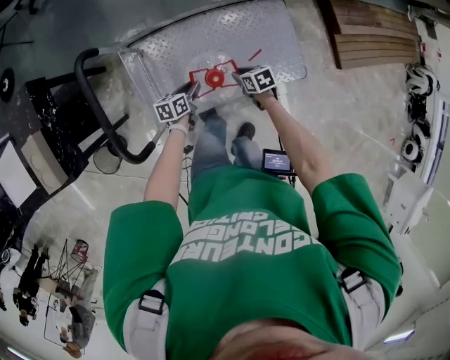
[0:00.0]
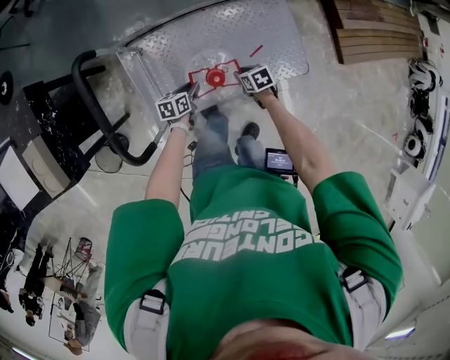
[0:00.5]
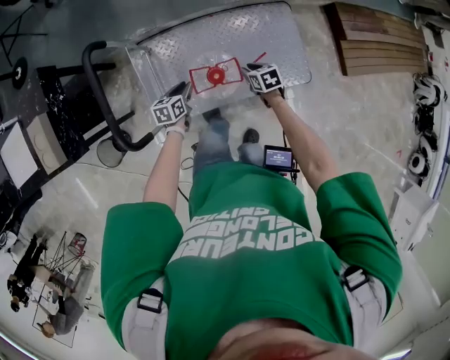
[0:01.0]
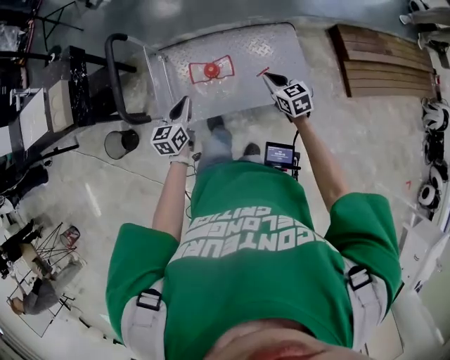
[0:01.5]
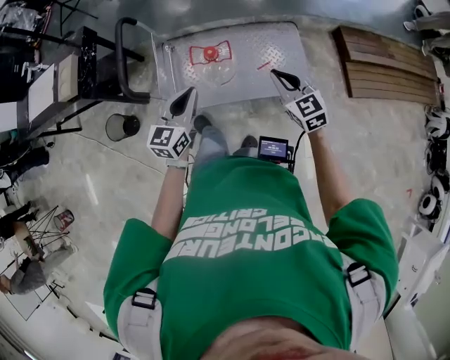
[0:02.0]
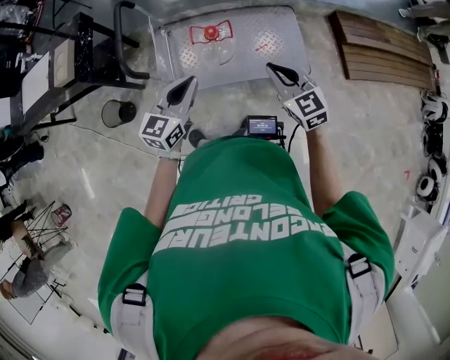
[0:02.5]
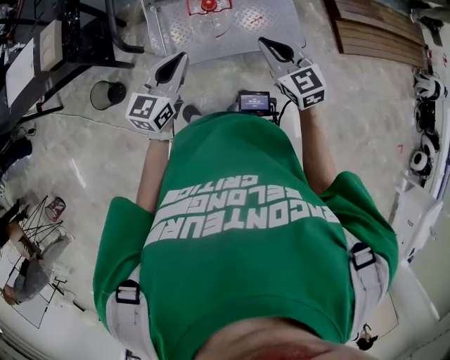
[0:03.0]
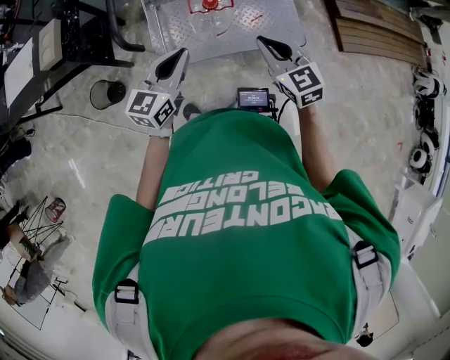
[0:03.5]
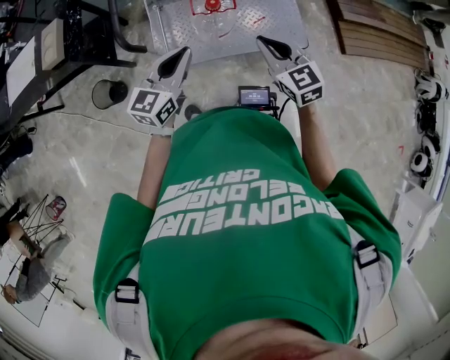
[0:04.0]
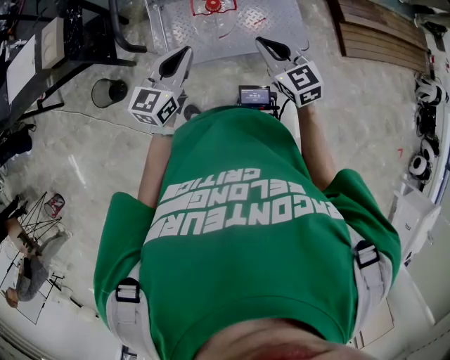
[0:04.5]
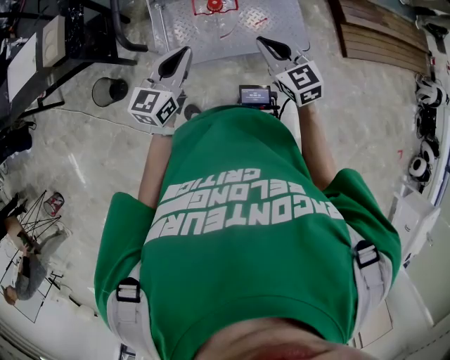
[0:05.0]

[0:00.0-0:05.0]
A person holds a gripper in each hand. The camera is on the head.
0:00.0 to 0:02.5: The grippers both shift upward and backward by approximately 50 cm. The left gripper turns by some 50 degrees, and closes; the right gripper angles its fingers upward, by approximately 40 degrees.
0:02.5 to 0:05.0: The right gripper shifts roughly 5 cm to the left.

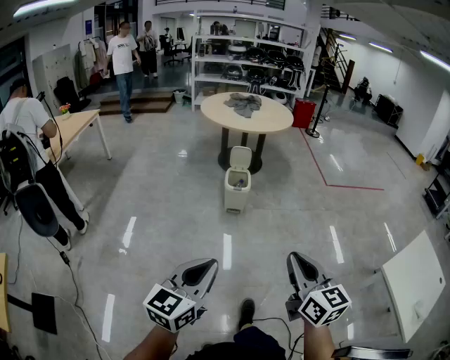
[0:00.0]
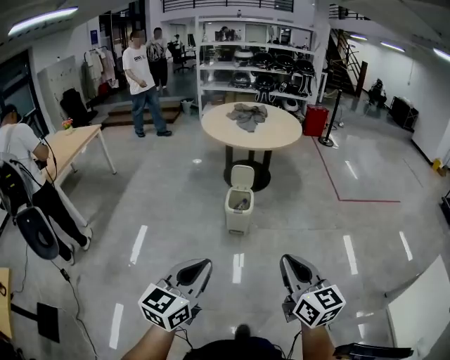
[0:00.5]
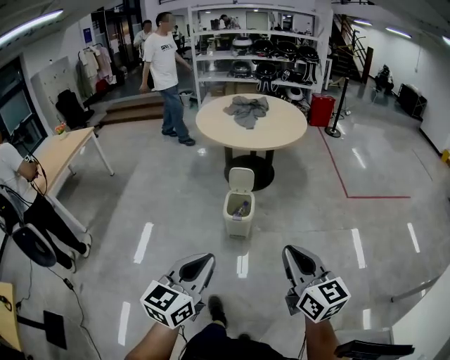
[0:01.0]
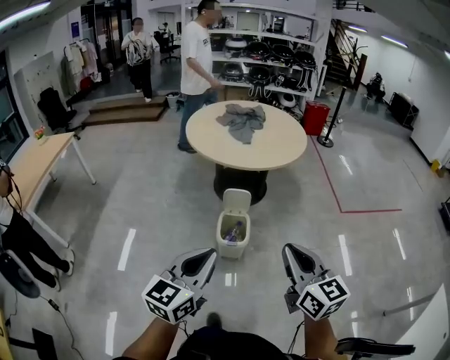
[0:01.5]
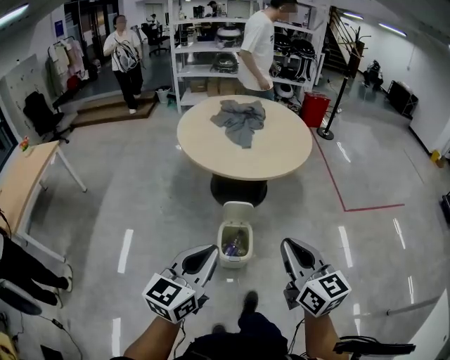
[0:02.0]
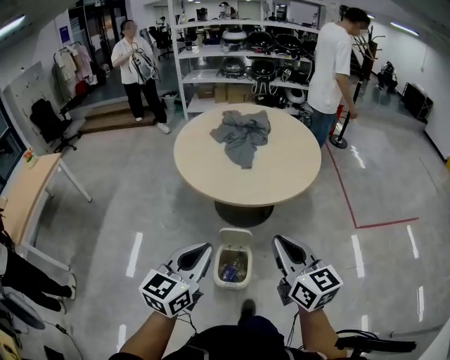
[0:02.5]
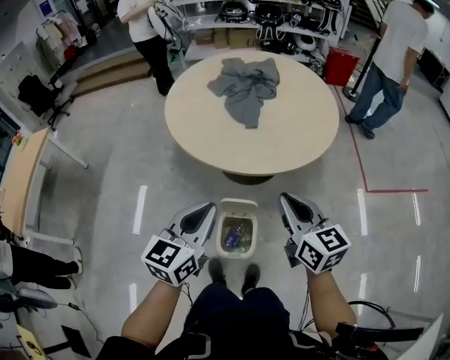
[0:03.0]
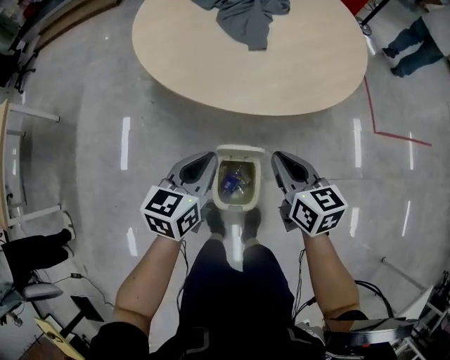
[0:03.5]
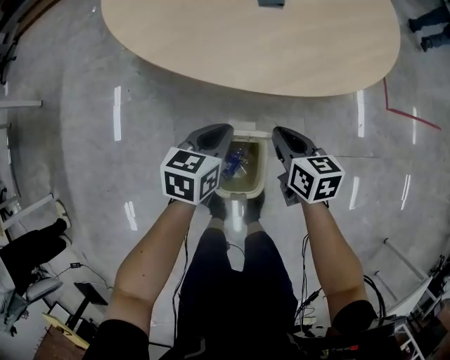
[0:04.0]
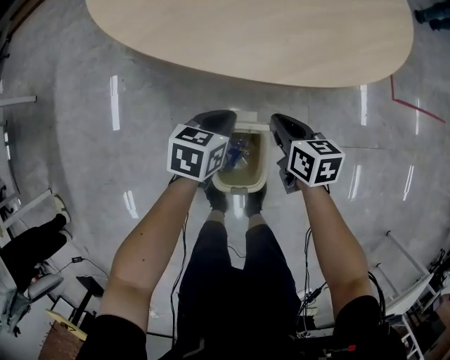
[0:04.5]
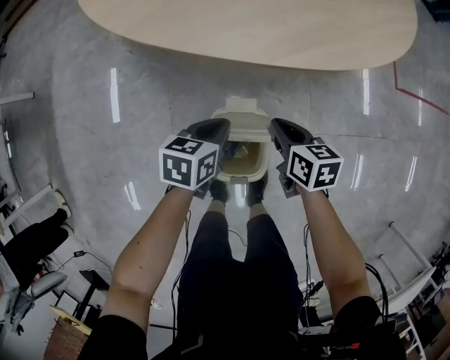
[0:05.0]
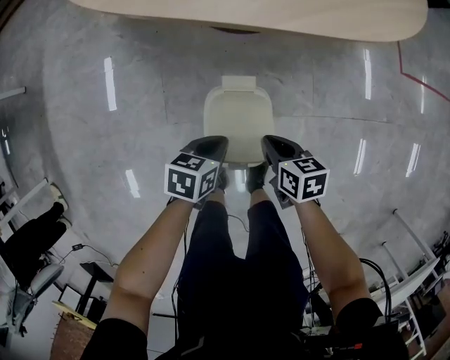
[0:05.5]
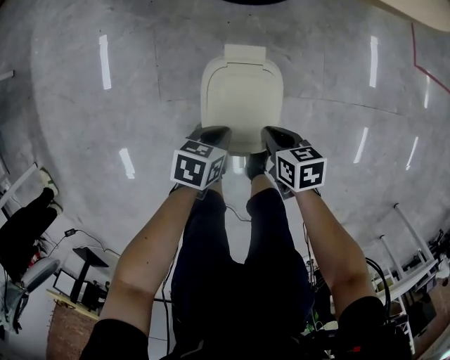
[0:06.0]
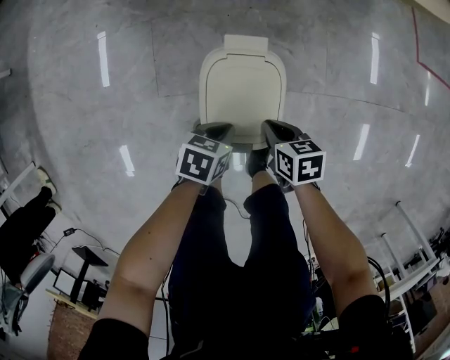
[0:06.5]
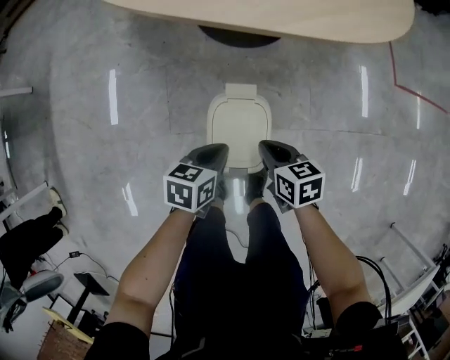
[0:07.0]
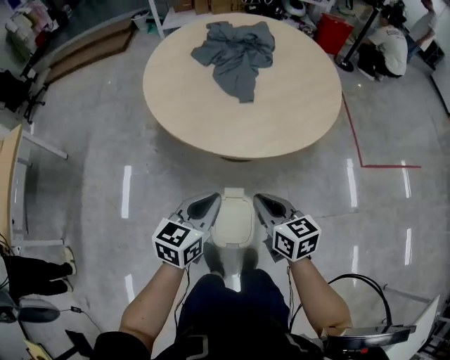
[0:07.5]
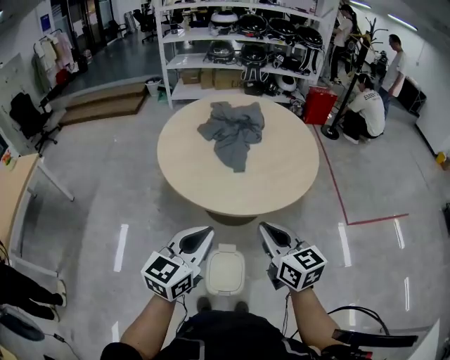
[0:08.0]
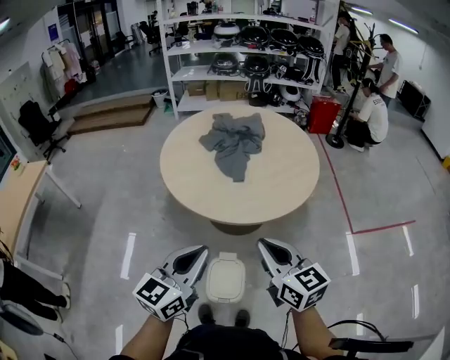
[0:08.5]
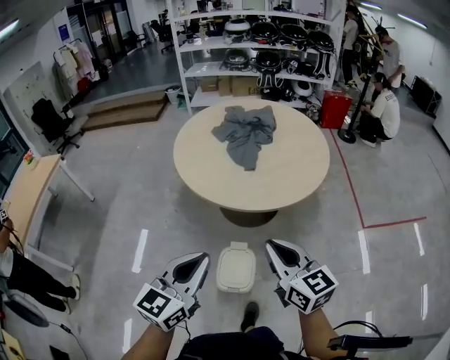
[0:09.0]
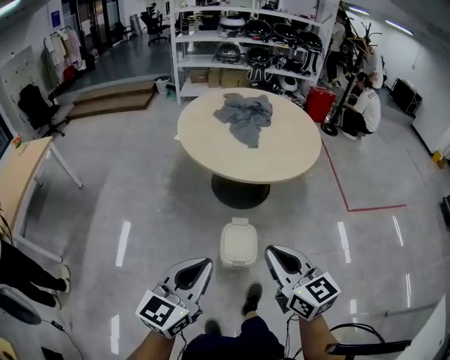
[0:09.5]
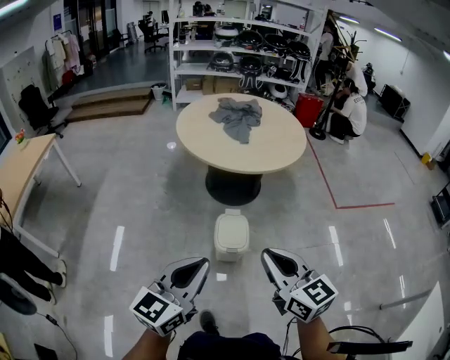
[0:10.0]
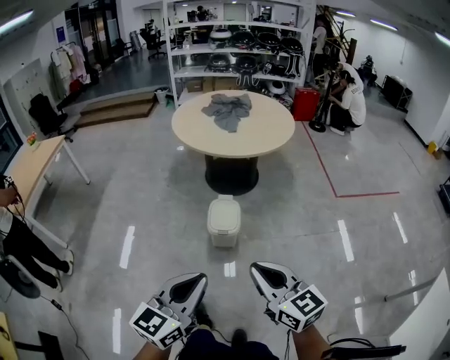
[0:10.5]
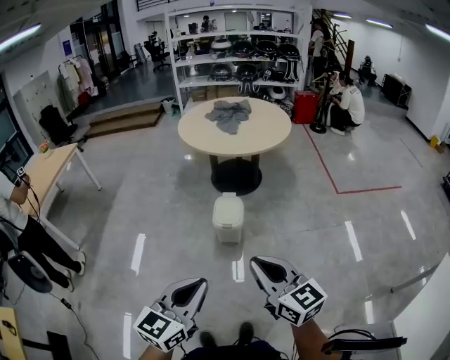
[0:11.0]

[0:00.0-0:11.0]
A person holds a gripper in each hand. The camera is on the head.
0:00.0 to 0:02.0: The two grippers travel together, forward, about 70 cm.
0:02.0 to 0:03.5: The grippers both shift forward and downward by approximately 40 cm. The right gripper swivels some 30 degrees. The left gripper turns by about 20 degrees.
0:03.5 to 0:05.5: The grippers both shift downward by about 30 cm. The left gripper swivels some 40 degrees, while the right gripper swivels about 30 degrees.
0:05.5 to 0:07.5: Both grippers travel together upward, about 35 cm. The left gripper swivels some 40 degrees; the right gripper changes its angle by about 30 degrees.
0:07.5 to 0:09.0: The grippers both shift upward and backward by roughly 25 cm. The right gripper changes its angle by approximately 20 degrees. Meanwhile the left gripper swivels about 20 degrees.
0:09.0 to 0:11.0: The two grippers travel together, backward, approximately 50 cm.

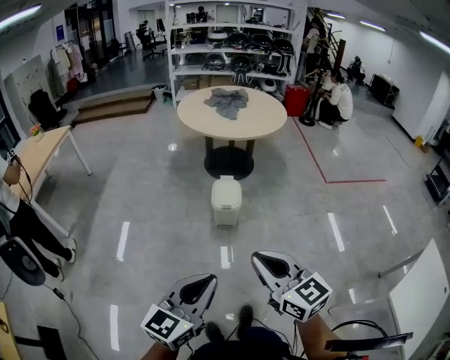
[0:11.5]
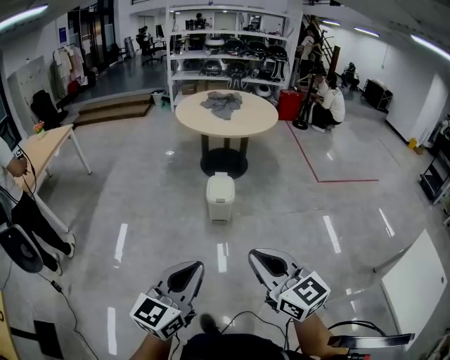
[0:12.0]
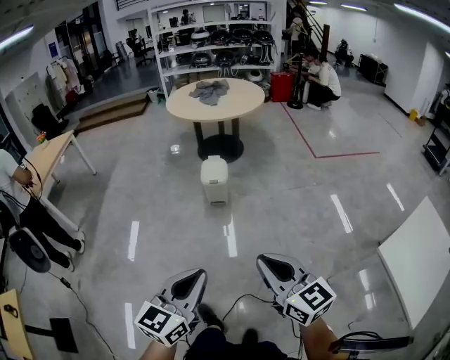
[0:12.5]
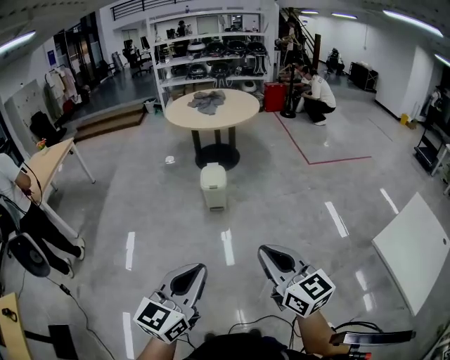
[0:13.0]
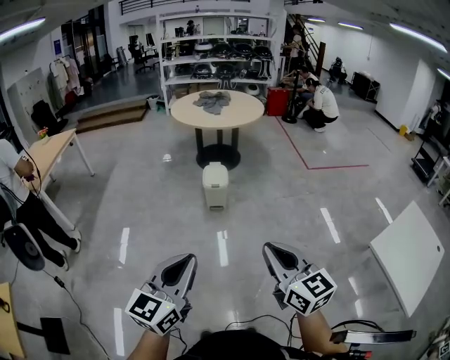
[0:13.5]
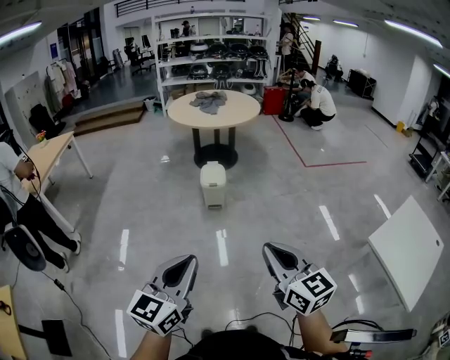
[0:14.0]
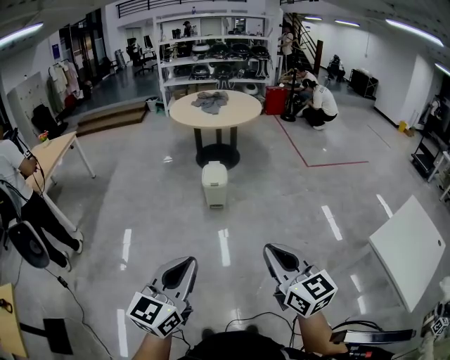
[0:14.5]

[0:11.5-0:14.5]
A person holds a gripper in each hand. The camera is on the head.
0:11.5 to 0:13.0: The right gripper is displaced backward and to the right by some 30 cm; the left gripper is displaced backward by about 25 cm.
0:13.0 to 0:14.5: The left gripper heads to the left, covering some 5 cm.

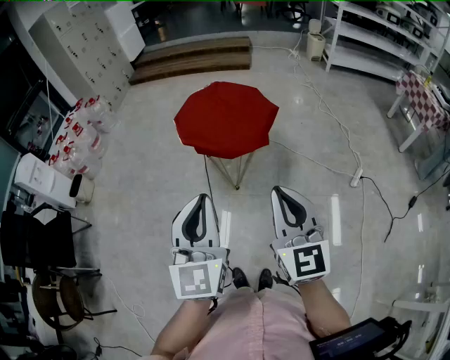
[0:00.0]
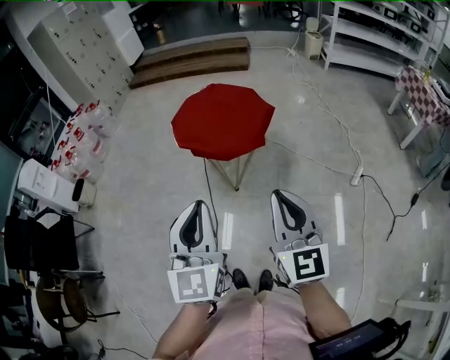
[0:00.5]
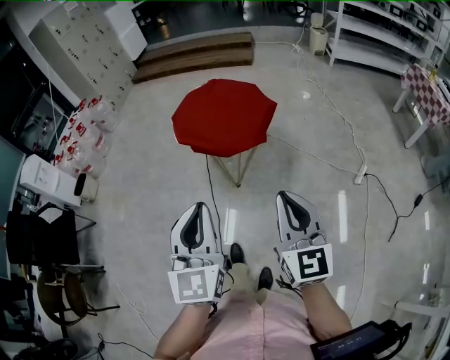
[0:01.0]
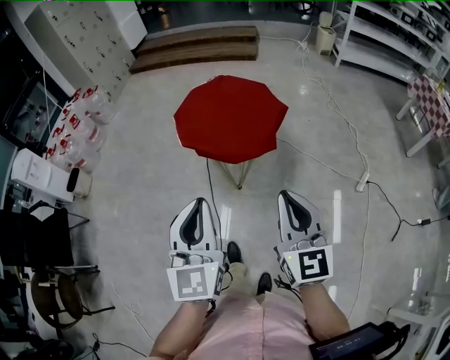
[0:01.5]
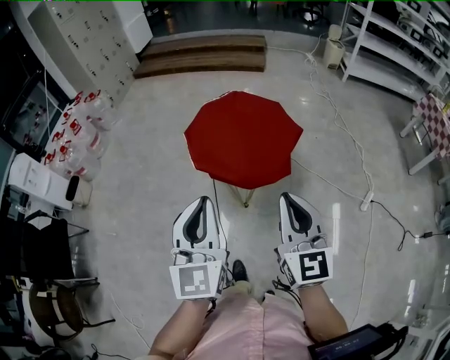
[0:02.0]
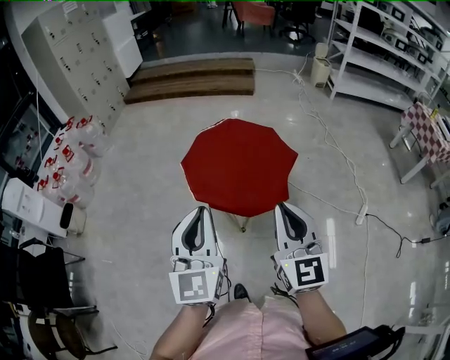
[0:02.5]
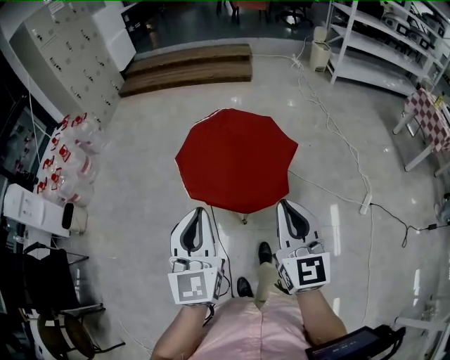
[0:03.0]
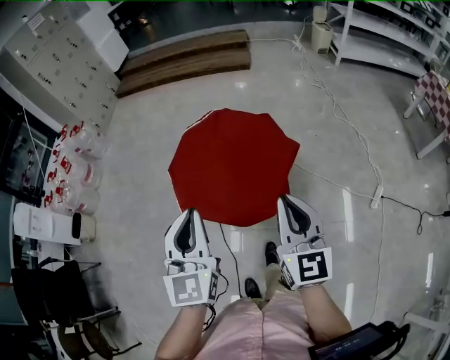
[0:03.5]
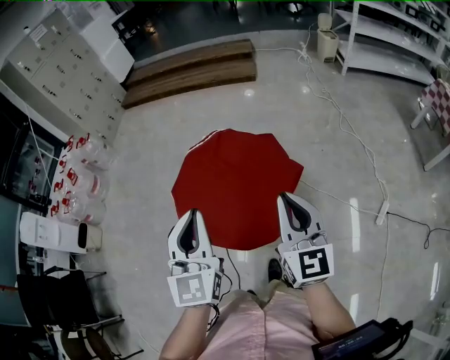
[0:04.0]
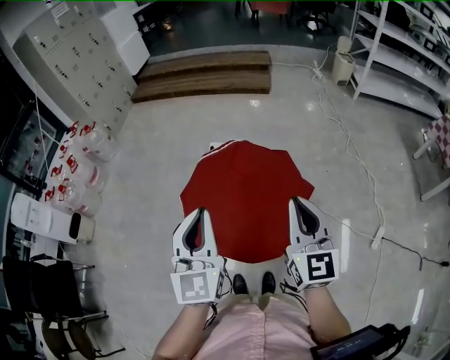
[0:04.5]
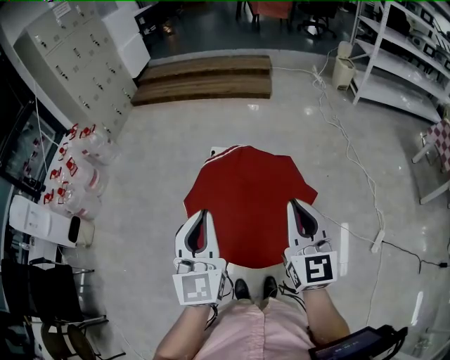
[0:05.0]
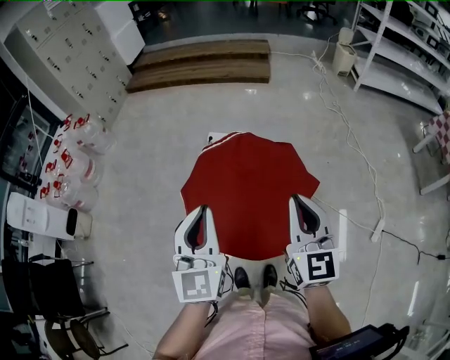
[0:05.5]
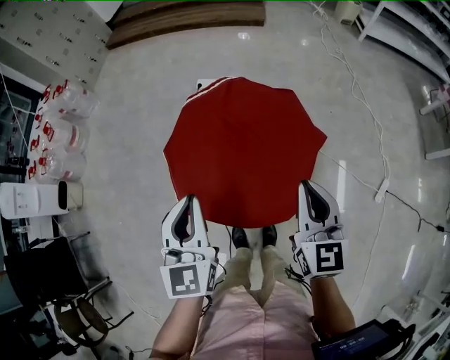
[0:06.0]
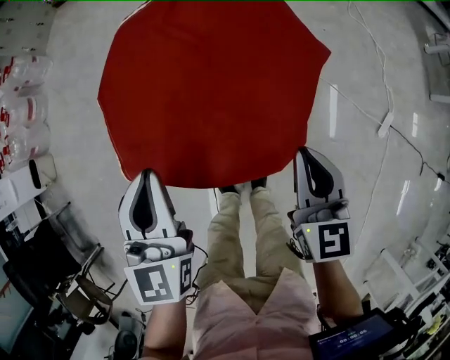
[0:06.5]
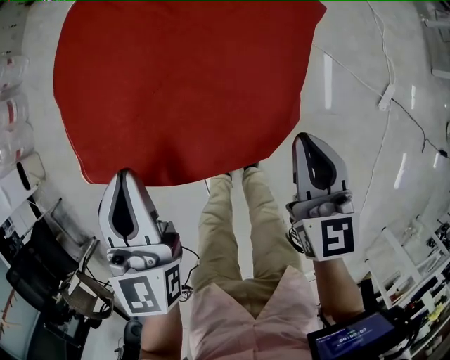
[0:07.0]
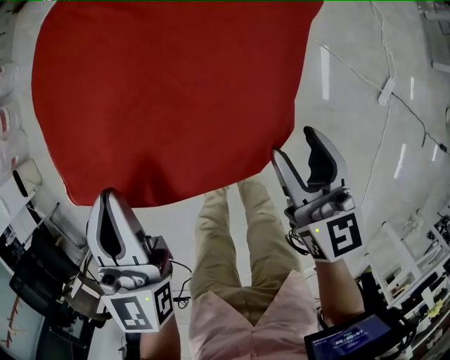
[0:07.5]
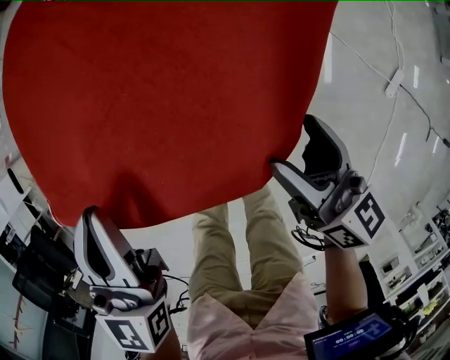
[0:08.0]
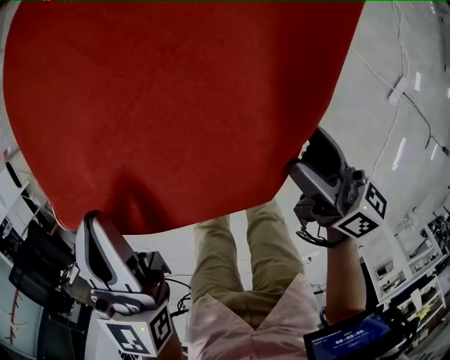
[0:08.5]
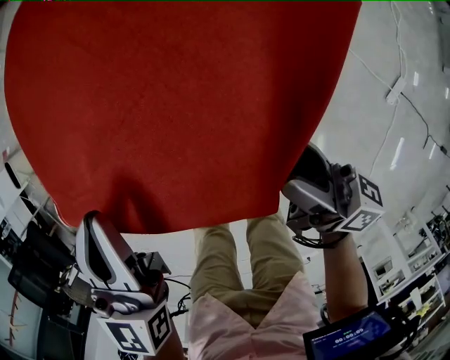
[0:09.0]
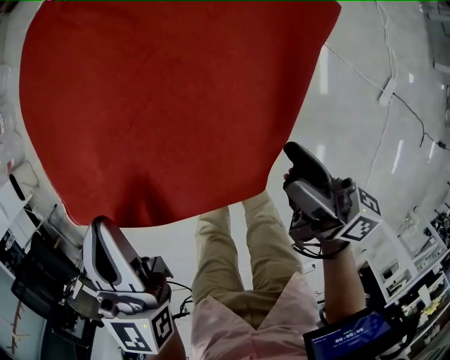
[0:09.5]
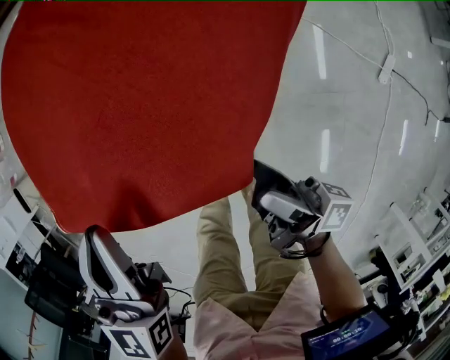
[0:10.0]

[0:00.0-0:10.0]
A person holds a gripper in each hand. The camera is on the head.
0:00.0 to 0:02.0: The two grippers go some 20 cm forward.
0:02.0 to 0:04.0: The grippers both shift forward by some 25 cm.
0:04.0 to 0:06.0: Both grippers travel together downward, to the left and forward, about 15 cm.
0:06.0 to 0:08.0: The grippers both shift downward by about 25 cm. The right gripper turns by approximately 40 degrees, and opens its fingers.
0:08.0 to 0:10.0: The right gripper moves backward, approximately 5 cm, and twists about 50 degrees clockwise, seen from behind.
